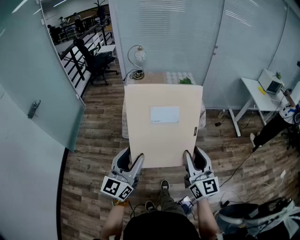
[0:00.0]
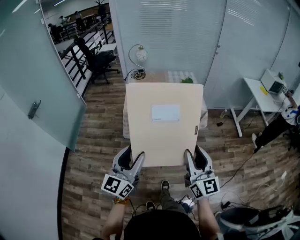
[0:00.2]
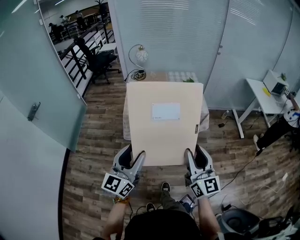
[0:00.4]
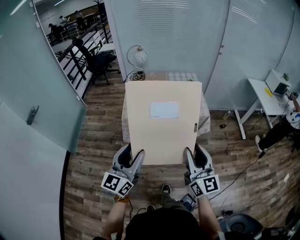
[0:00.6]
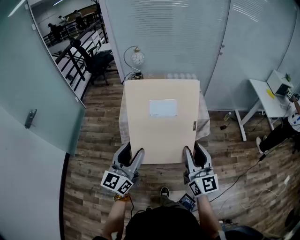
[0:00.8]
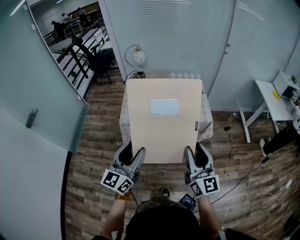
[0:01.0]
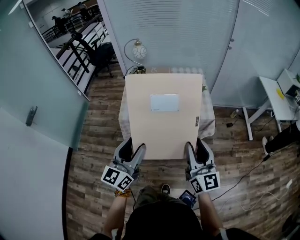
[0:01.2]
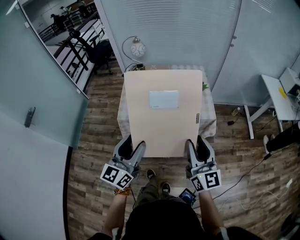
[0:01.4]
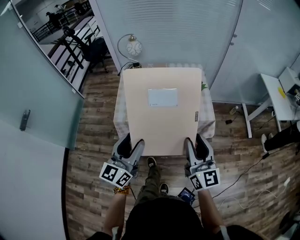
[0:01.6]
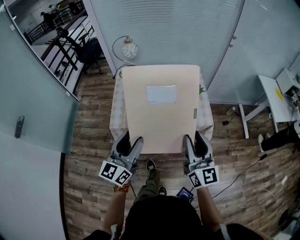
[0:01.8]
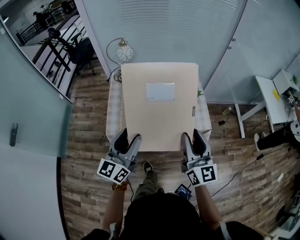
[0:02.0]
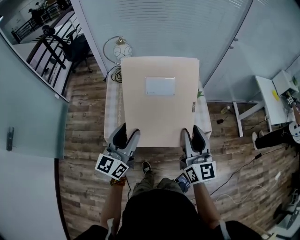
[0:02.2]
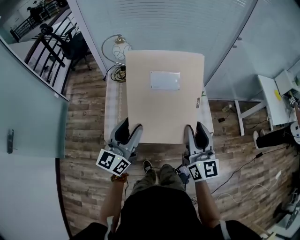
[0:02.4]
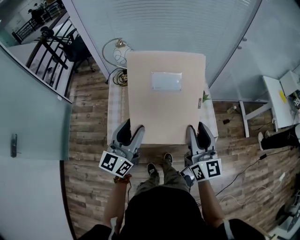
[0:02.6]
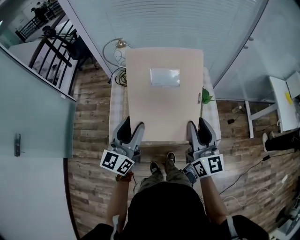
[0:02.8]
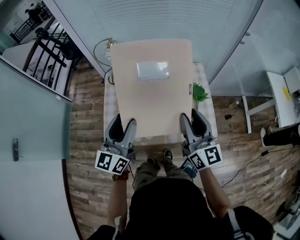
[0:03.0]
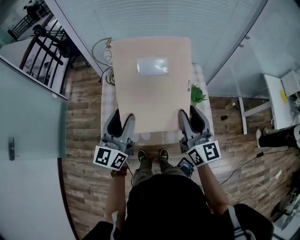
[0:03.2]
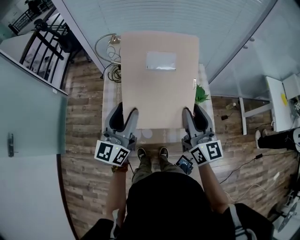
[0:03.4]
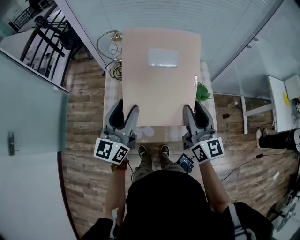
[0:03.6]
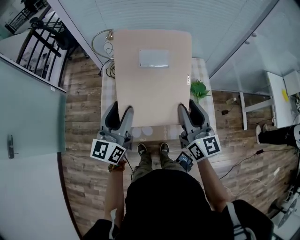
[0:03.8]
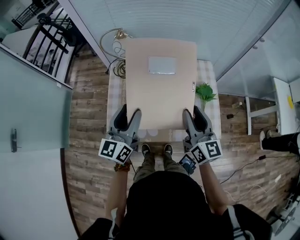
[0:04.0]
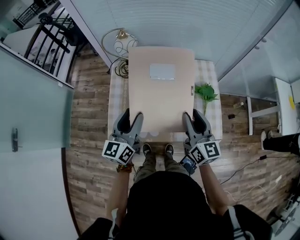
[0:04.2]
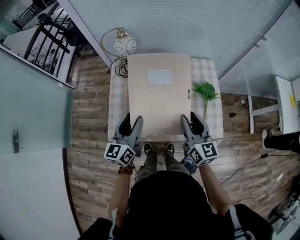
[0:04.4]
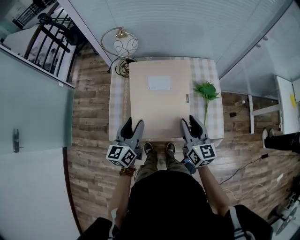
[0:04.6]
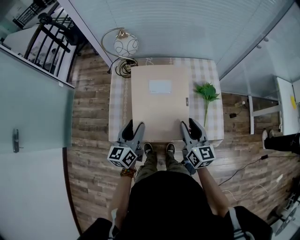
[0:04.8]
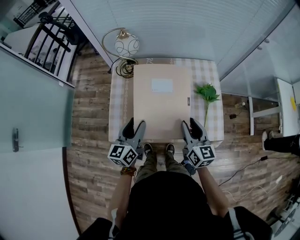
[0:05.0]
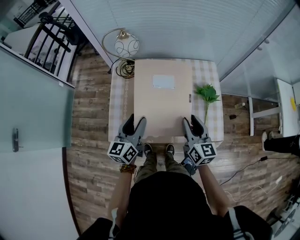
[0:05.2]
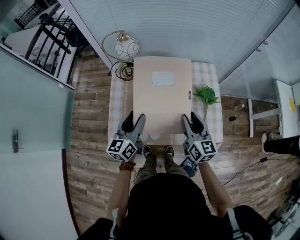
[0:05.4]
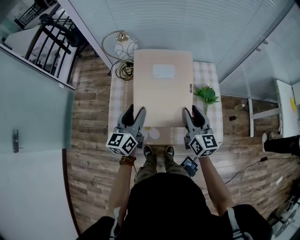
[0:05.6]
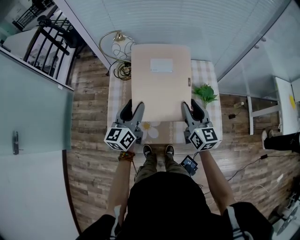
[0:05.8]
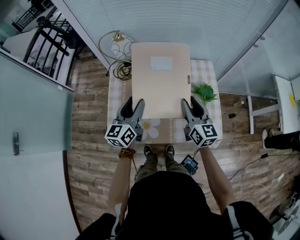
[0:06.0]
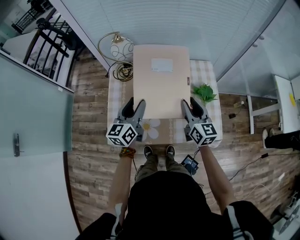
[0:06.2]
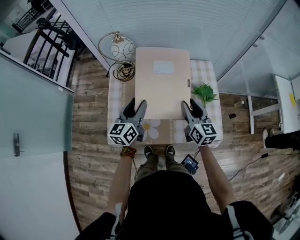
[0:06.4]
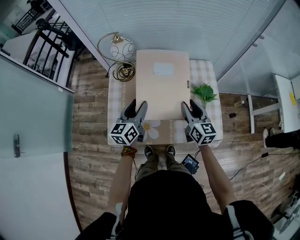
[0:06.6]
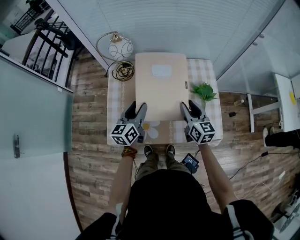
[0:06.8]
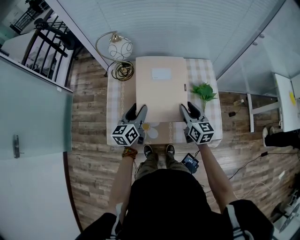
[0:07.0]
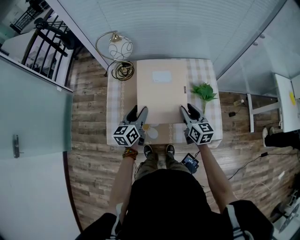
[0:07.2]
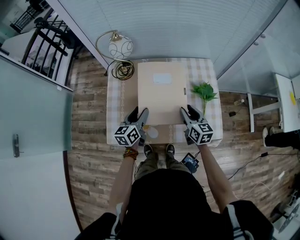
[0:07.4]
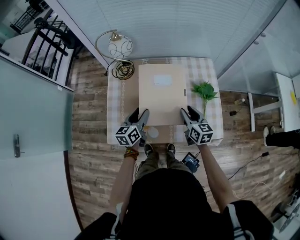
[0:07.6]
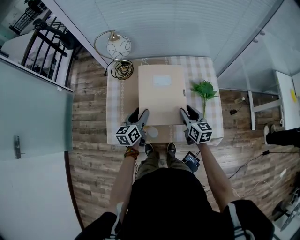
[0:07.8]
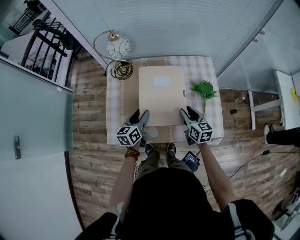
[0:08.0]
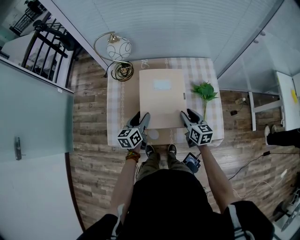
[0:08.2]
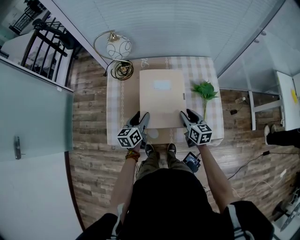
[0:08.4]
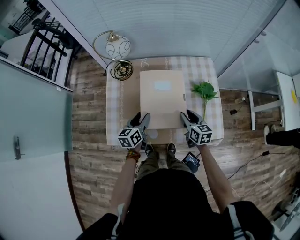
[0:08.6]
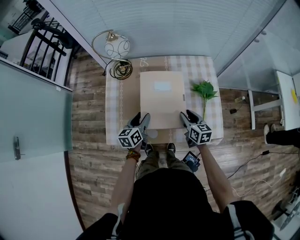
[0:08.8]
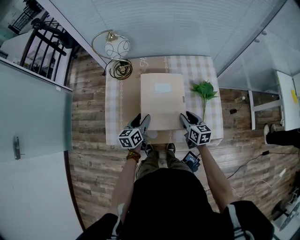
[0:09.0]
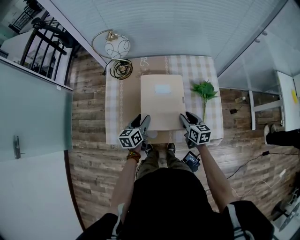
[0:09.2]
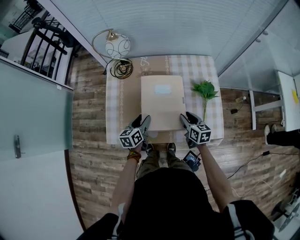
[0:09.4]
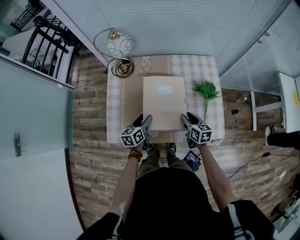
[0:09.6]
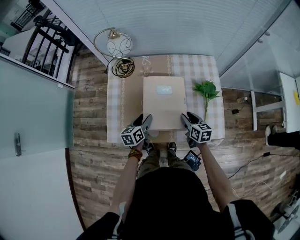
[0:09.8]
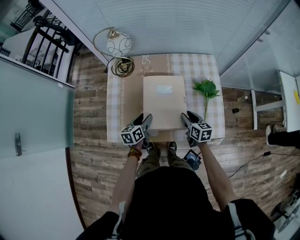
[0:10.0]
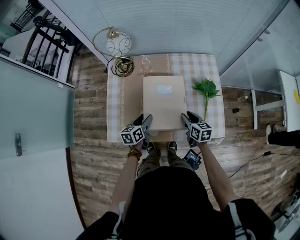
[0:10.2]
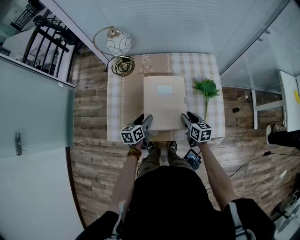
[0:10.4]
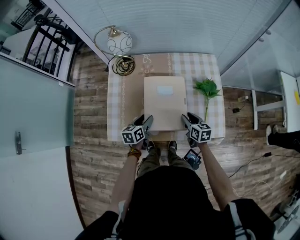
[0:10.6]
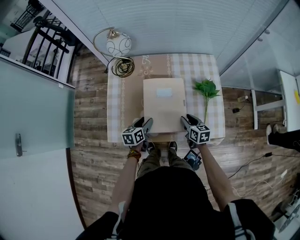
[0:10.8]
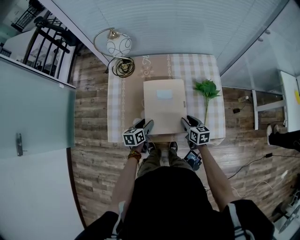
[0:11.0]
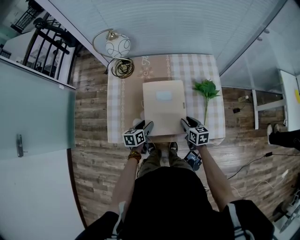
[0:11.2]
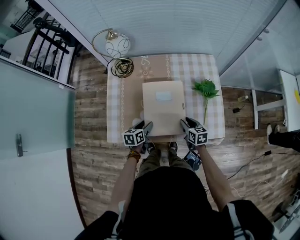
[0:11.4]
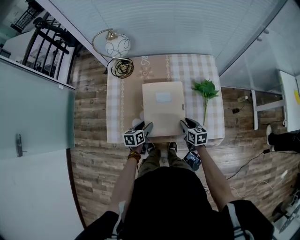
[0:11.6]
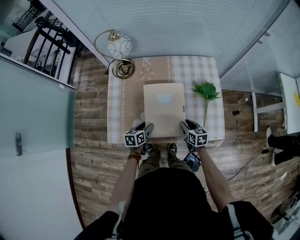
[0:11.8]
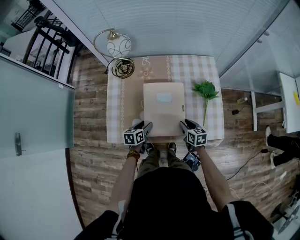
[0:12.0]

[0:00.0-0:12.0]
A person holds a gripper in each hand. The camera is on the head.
0:00.0 to 0:01.6: Both grippers travel together forward, about 30 cm.
0:01.6 to 0:03.0: Both grippers travel together forward, approximately 30 cm.
0:03.0 to 0:04.4: Both grippers travel together downward, roughly 10 cm.
0:04.4 to 0:06.0: The two grippers go some 10 cm forward.
0:06.0 to 0:07.6: Both grippers move downward, approximately 15 cm.
0:07.6 to 0:09.0: Both grippers travel together downward, roughly 5 cm.
0:09.0 to 0:10.4: The grippers make only small movements.
0:10.4 to 0:12.0: The right gripper changes place by roughly 5 cm. The left gripper travels downward by about 5 cm.

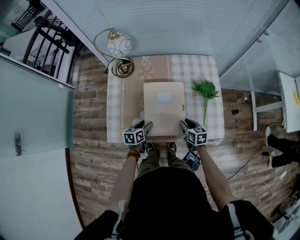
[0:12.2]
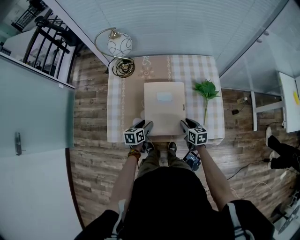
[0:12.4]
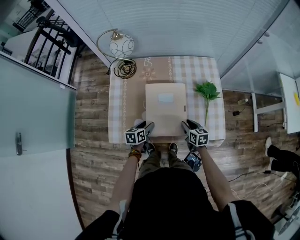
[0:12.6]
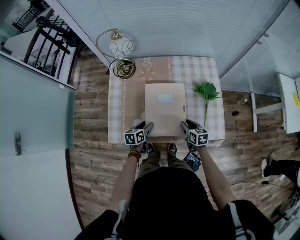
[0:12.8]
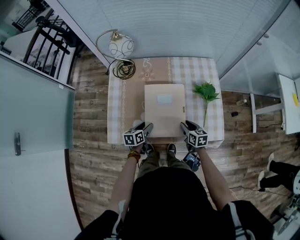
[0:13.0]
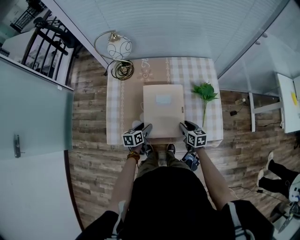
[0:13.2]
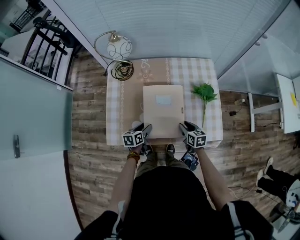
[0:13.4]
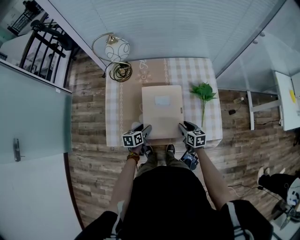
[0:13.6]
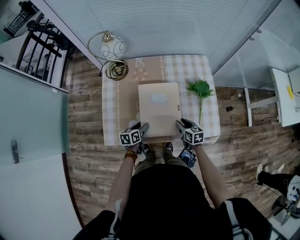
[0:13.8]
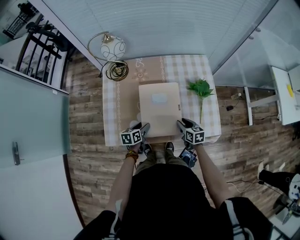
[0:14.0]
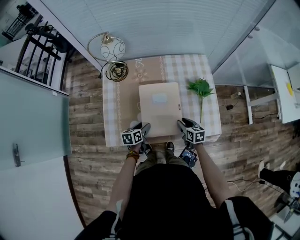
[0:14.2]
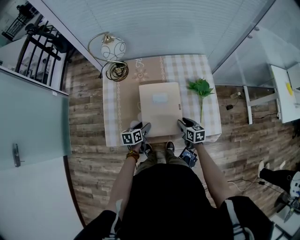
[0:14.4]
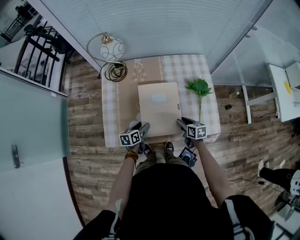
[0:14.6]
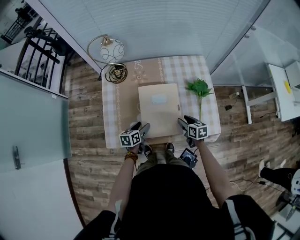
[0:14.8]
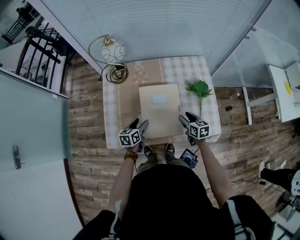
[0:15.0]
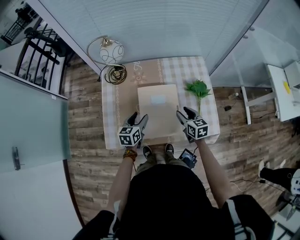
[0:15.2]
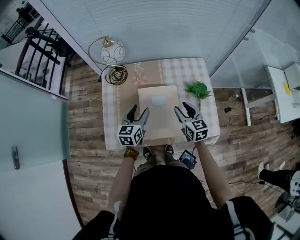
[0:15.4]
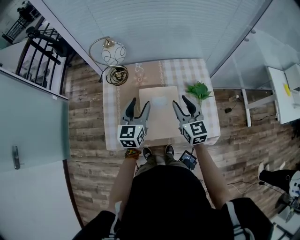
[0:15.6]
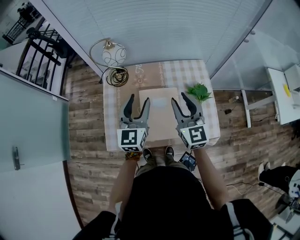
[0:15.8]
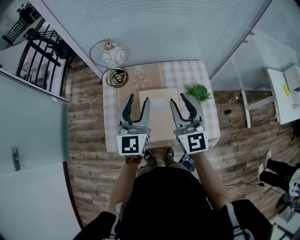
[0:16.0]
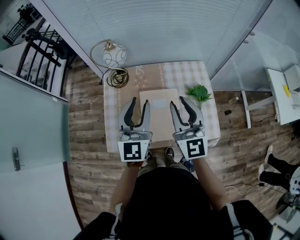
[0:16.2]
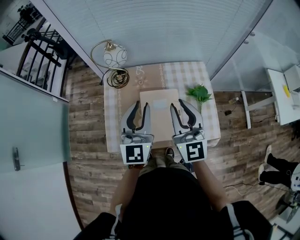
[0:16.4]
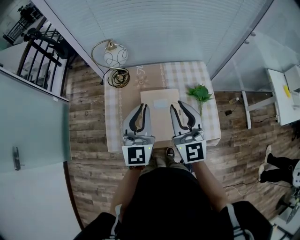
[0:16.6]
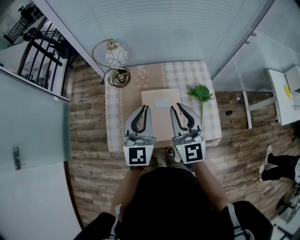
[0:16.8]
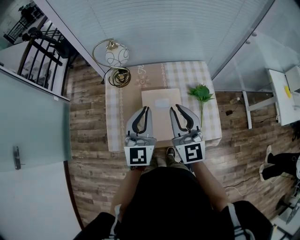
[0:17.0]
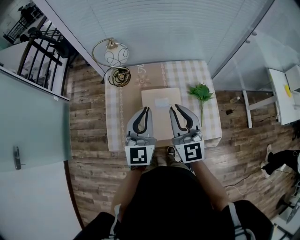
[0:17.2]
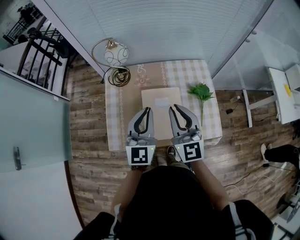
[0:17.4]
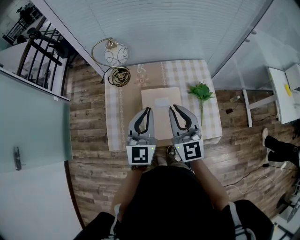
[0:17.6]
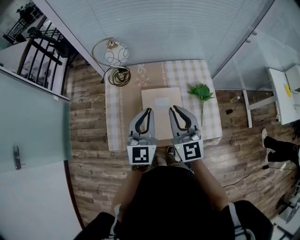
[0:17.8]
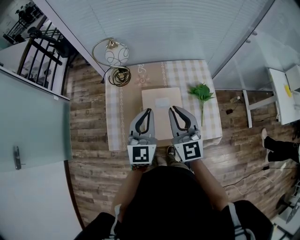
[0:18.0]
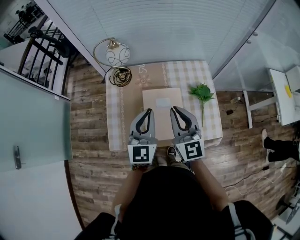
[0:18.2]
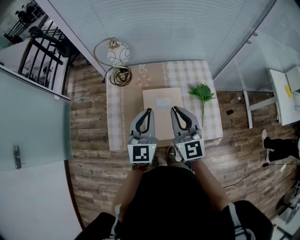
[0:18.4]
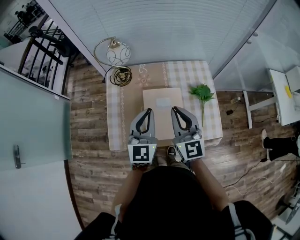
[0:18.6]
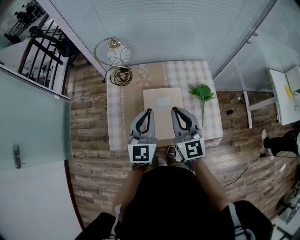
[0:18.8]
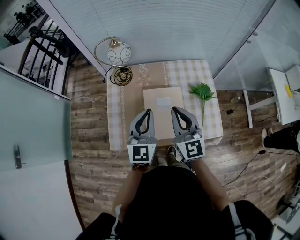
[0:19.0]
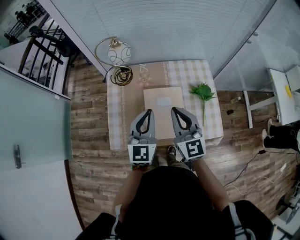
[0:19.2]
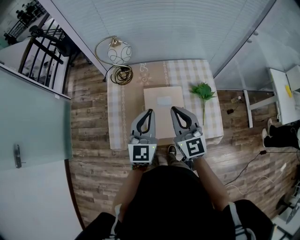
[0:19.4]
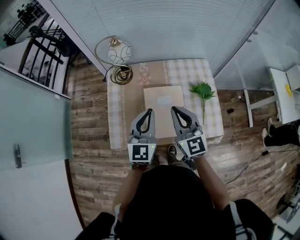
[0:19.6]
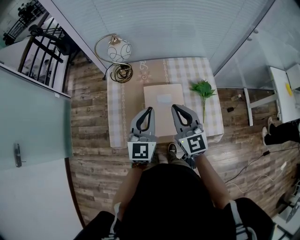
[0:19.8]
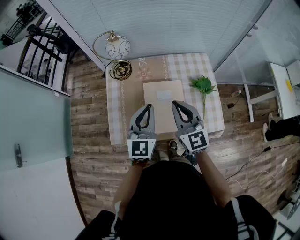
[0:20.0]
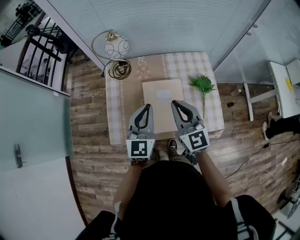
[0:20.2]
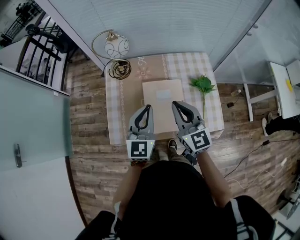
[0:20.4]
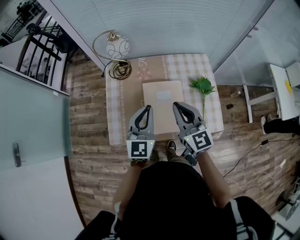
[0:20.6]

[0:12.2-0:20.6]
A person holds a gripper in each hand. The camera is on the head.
0:12.2 to 0:13.6: Both grippers stay put.
0:13.6 to 0:15.0: The left gripper changes place by approximately 5 cm; the right gripper changes place by approximately 5 cm.
0:15.0 to 0:16.4: The grippers both shift upward by roughly 35 cm. The left gripper tilts its fingers some 40 degrees upward, and closes its fingers; the right gripper tips its fingers upward by approximately 40 degrees, and closes up.
0:16.4 to 0:17.8: The right gripper changes place by about 5 cm, while the left gripper moves about 5 cm.
0:17.8 to 0:20.6: There are only small adjustments of the grippers.

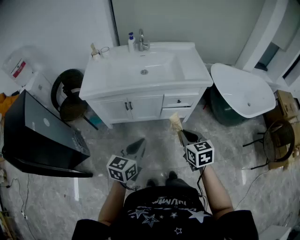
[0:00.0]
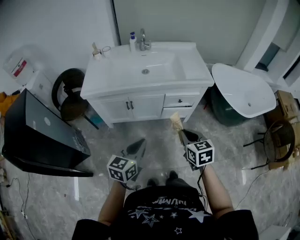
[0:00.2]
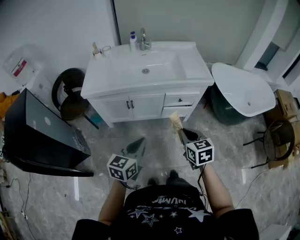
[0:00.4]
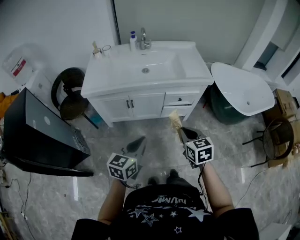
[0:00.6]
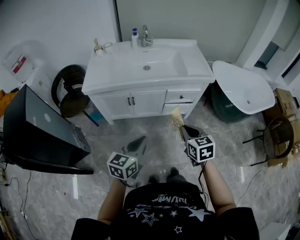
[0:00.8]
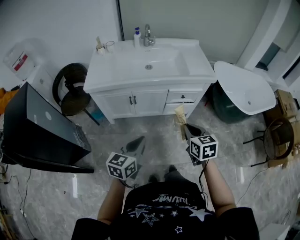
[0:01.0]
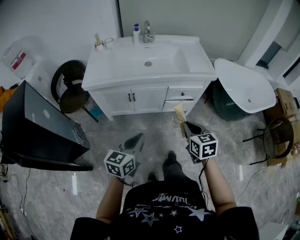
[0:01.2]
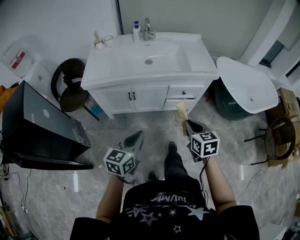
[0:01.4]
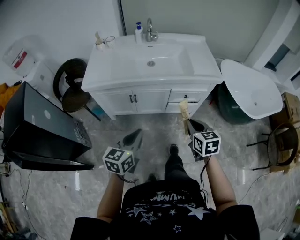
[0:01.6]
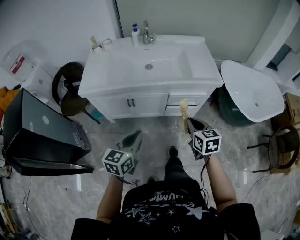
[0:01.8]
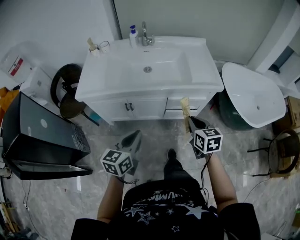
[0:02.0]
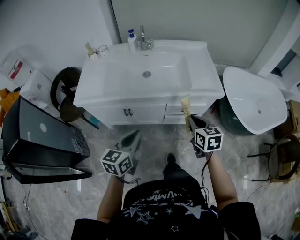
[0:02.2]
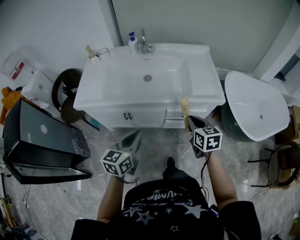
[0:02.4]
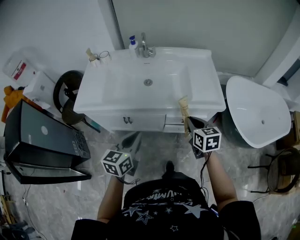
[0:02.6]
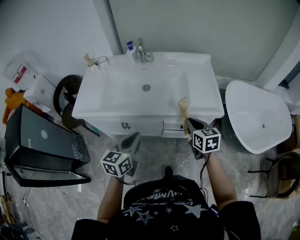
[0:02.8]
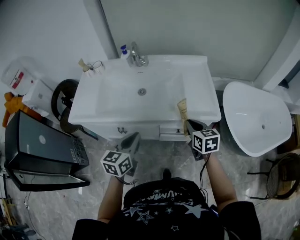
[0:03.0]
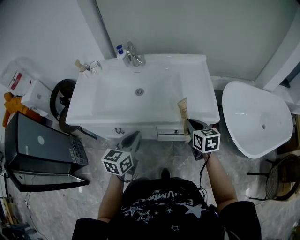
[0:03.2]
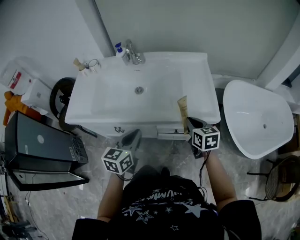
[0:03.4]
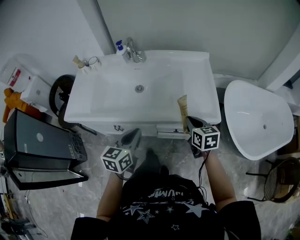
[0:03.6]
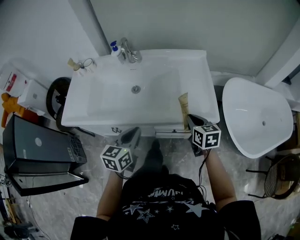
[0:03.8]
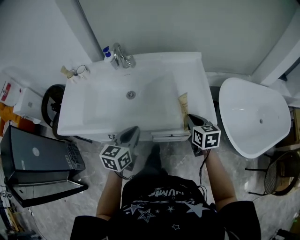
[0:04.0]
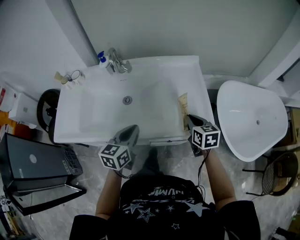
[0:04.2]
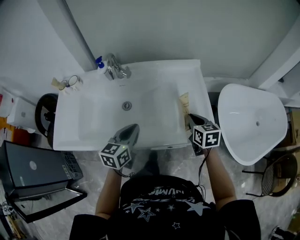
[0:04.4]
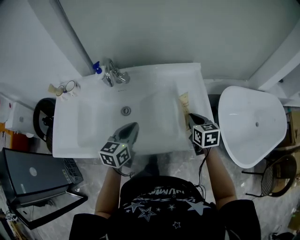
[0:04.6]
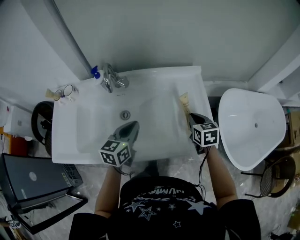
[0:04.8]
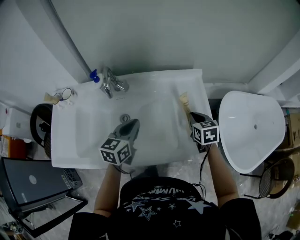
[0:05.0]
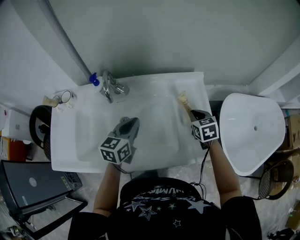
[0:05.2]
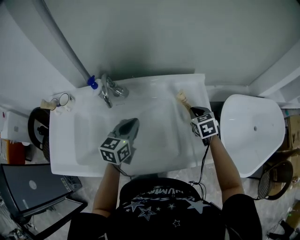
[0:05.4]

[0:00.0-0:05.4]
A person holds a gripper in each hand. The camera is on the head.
0:00.0 to 0:01.4: The grippers make only small movements.
0:01.4 to 0:02.8: Both grippers move forward, some 25 cm.
0:02.8 to 0:04.0: The two grippers go about 15 cm forward and to the right.
0:04.0 to 0:05.4: Both grippers travel together forward, approximately 25 cm. The right gripper rotates about 30 degrees.
